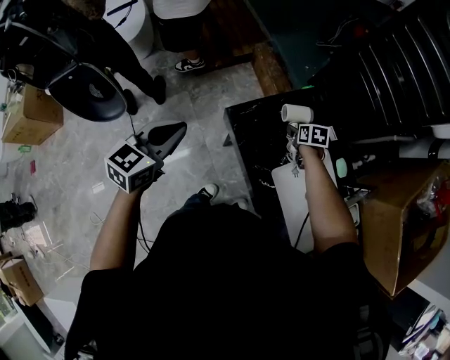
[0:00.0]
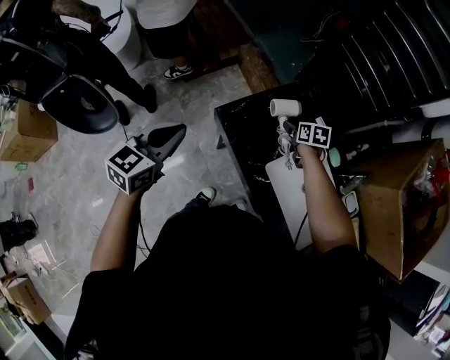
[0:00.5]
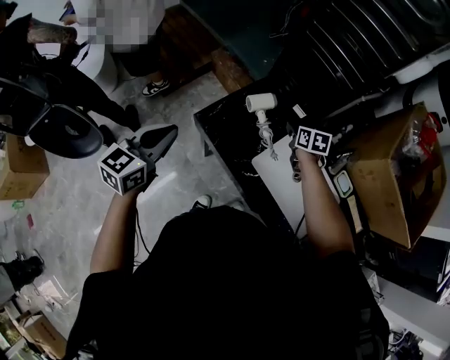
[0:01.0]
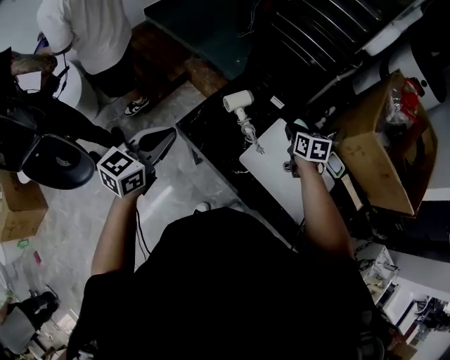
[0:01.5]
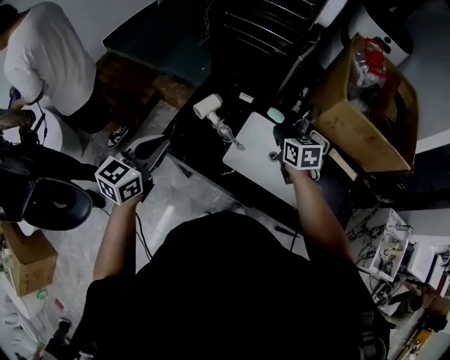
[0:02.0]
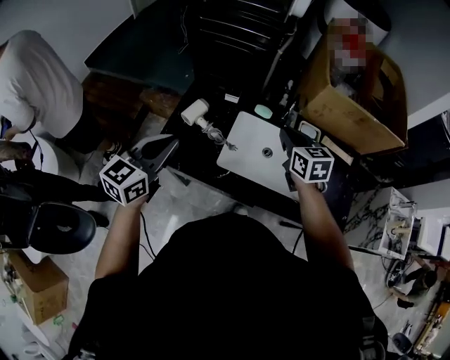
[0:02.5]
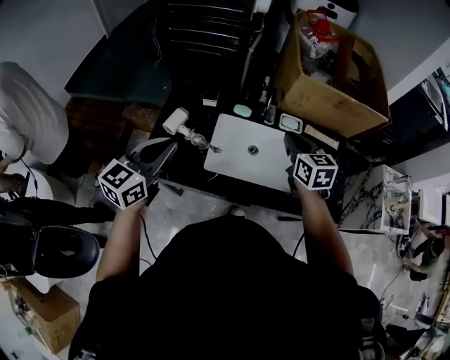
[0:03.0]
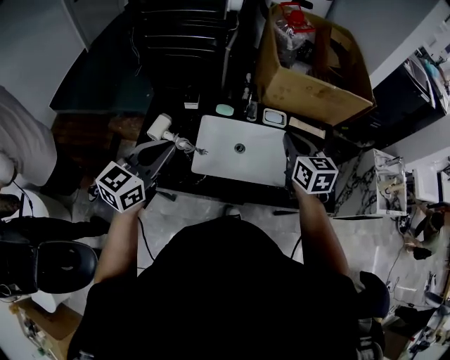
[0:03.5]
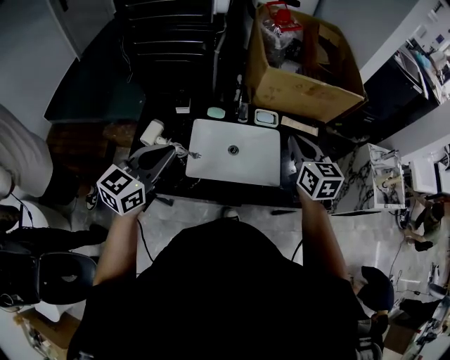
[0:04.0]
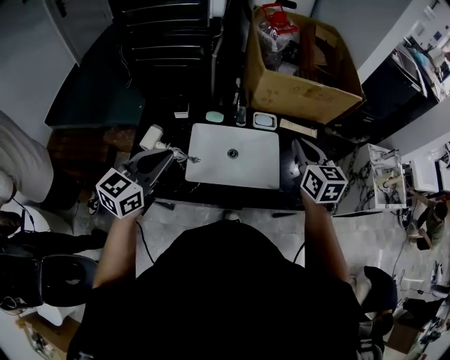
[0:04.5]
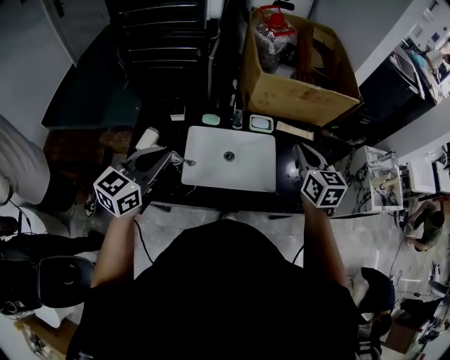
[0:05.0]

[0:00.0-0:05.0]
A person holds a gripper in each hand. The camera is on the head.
0:00.0 to 0:02.5: The right gripper shifts by roughly 40 cm, tilts its fingers about 30 degrees upward, and closes its fingers. Meanwhile the left gripper changes place by approximately 25 cm, and turns by some 40 degrees.
0:02.5 to 0:05.0: The left gripper moves to the right and forward, about 15 cm. The right gripper moves to the right, some 20 cm, and changes its angle by about 20 degrees.

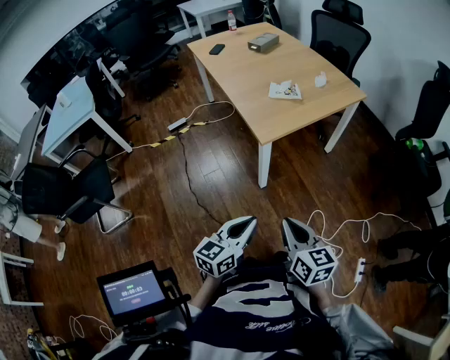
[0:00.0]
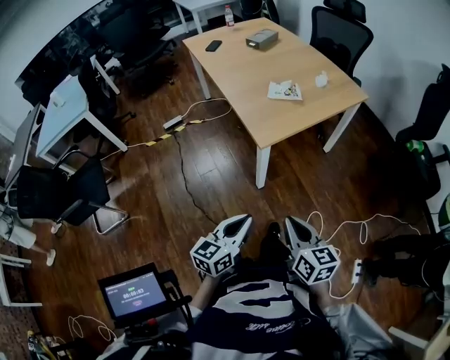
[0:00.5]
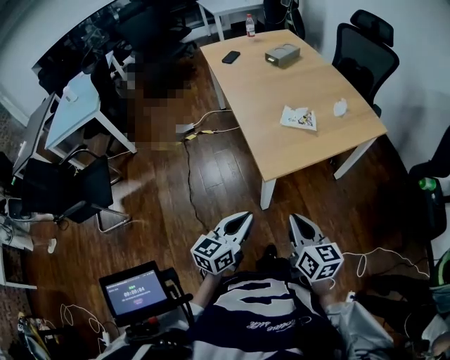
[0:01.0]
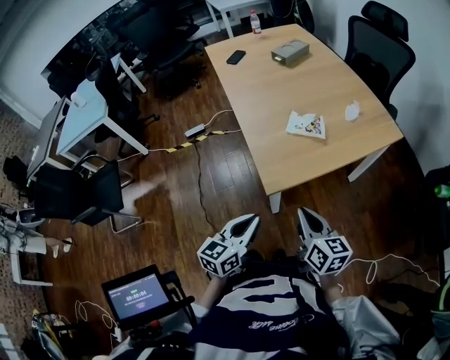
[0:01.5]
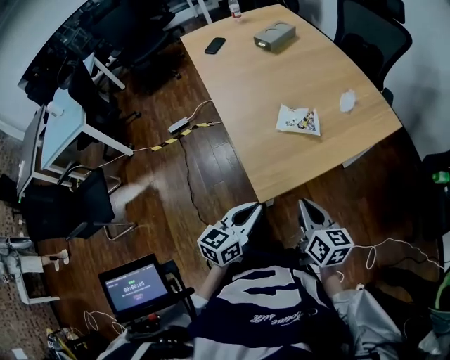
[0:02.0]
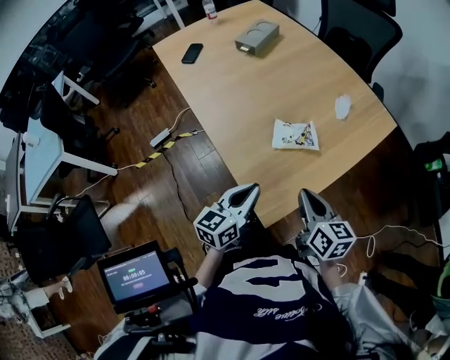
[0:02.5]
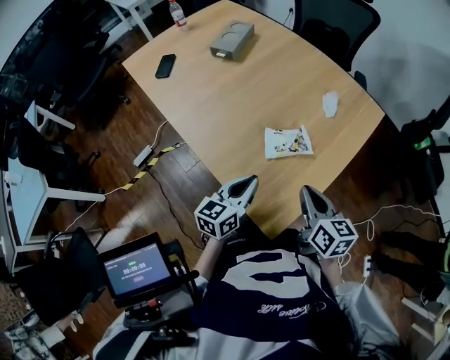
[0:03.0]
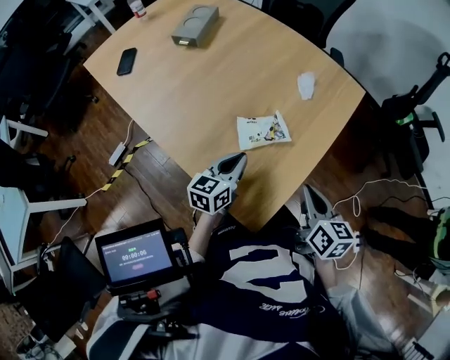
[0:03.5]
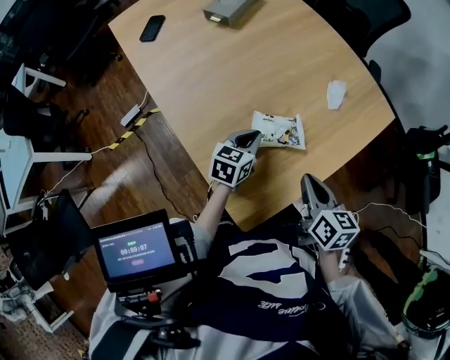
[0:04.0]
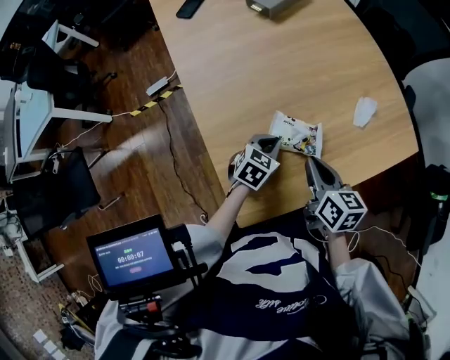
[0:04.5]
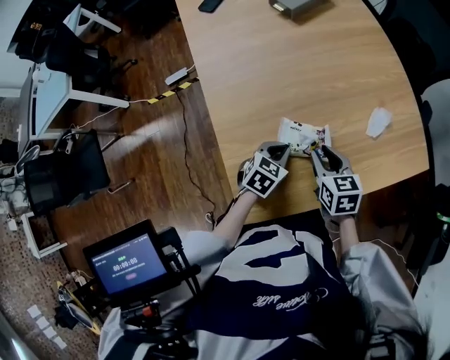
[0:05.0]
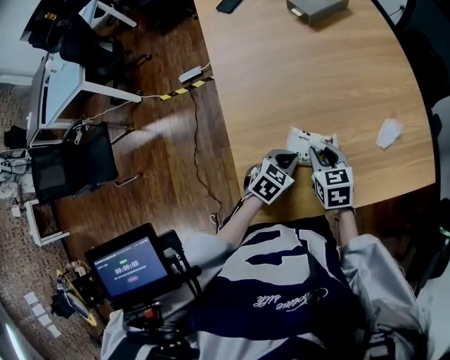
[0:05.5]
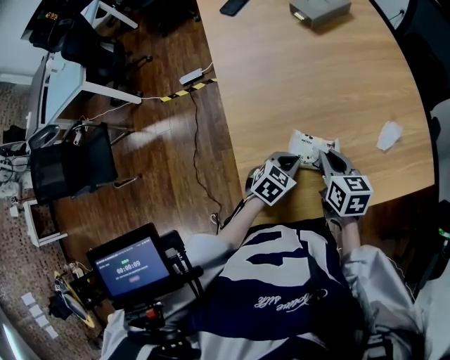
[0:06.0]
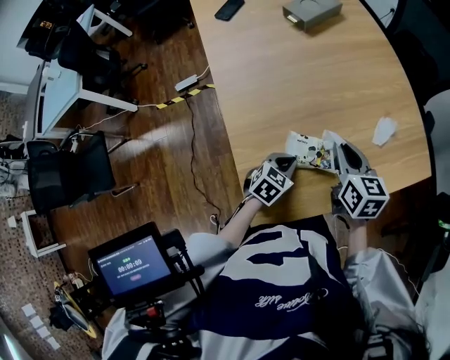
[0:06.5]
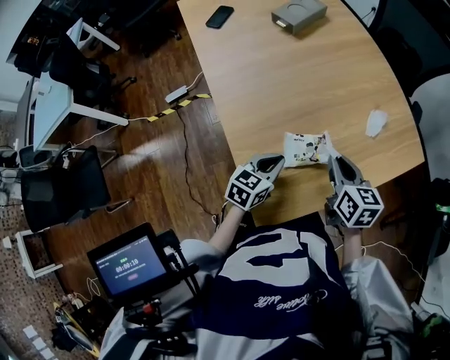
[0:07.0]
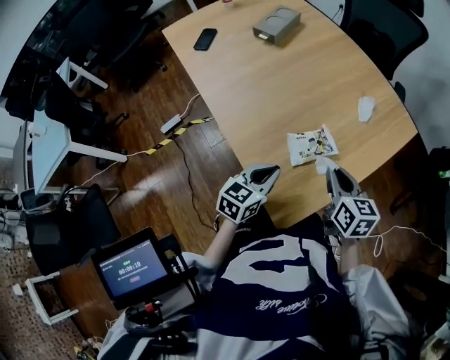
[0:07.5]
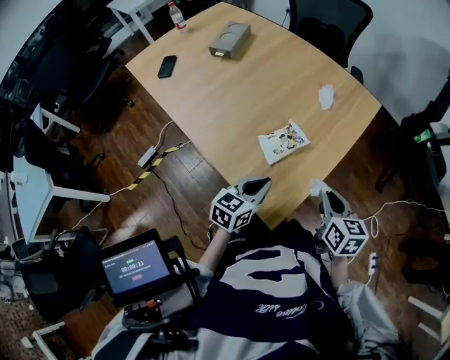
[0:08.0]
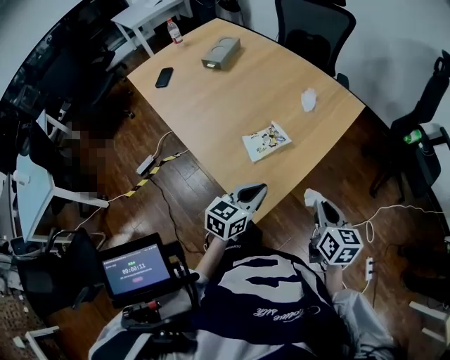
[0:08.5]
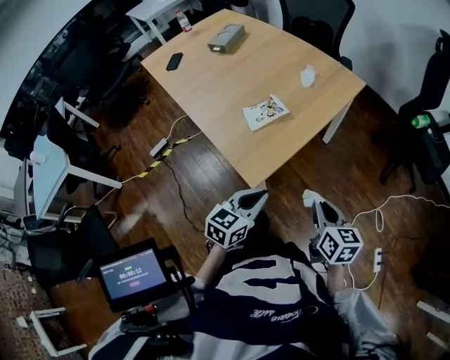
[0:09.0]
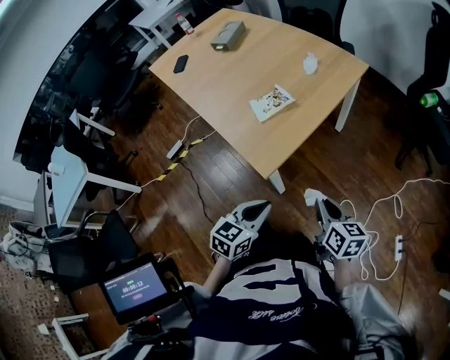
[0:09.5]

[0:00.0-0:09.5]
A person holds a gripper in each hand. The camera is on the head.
0:00.0 to 0:02.0: The grippers both shift forward by approximately 35 cm.
0:02.0 to 0:04.0: The right gripper moves some 20 cm, while the left gripper moves roughly 40 cm, and turns by some 20 degrees.
0:04.0 to 0:05.5: The left gripper shifts by some 5 cm. Meanwhile the right gripper heads forward, downward and to the left, covering roughly 15 cm, swivels about 50 degrees, and opens up.
0:05.5 to 0:07.5: The right gripper travels upward and backward by about 15 cm, rotates about 40 degrees, and closes its fingers. Meanwhile the left gripper is displaced upward, to the left and backward by approximately 15 cm, and rotates about 20 degrees.
0:07.5 to 0:09.5: The two grippers go about 35 cm backward and to the right.

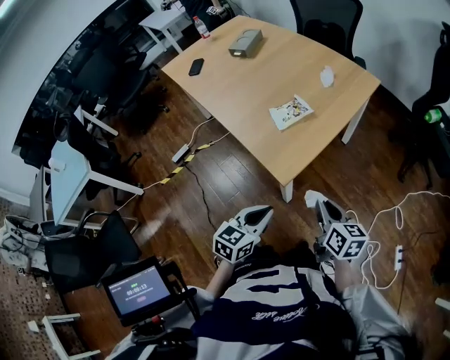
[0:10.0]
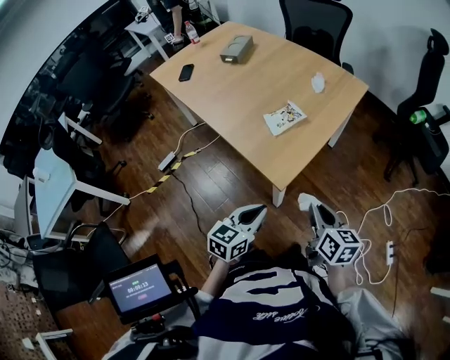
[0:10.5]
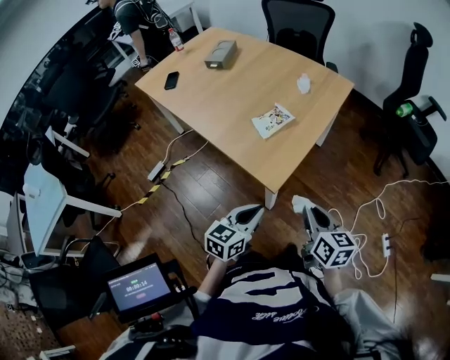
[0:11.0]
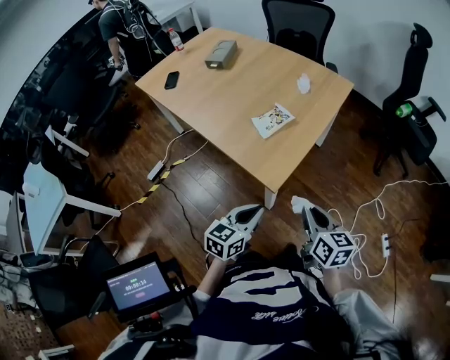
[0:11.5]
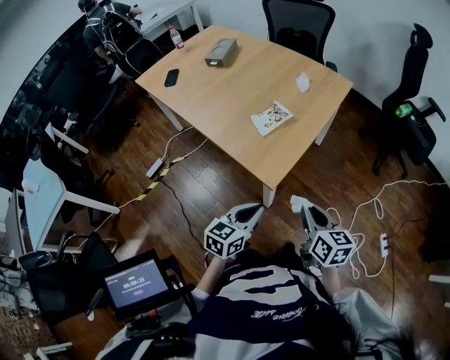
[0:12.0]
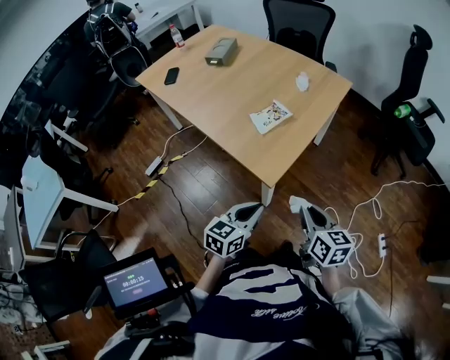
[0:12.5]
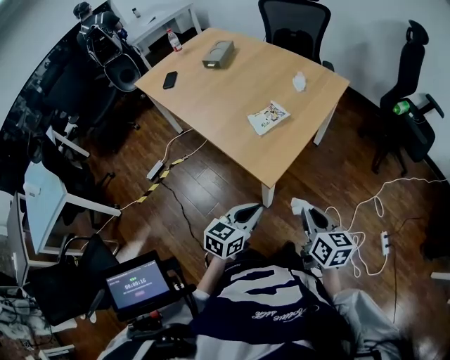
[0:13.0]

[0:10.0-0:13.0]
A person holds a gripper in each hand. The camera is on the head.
0:10.0 to 0:11.5: The right gripper moves about 5 cm.
0:11.5 to 0:13.0: Both grippers stay put.

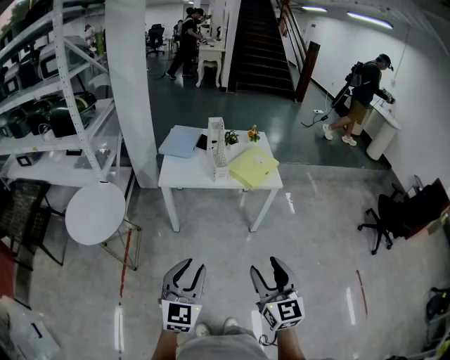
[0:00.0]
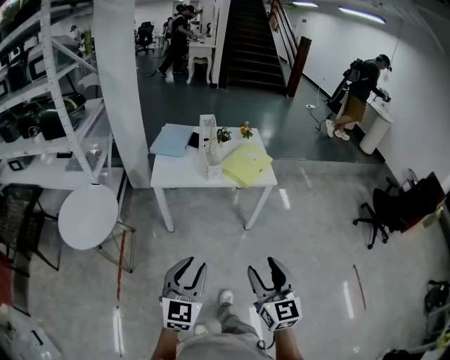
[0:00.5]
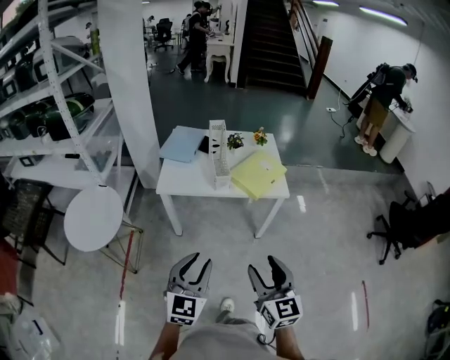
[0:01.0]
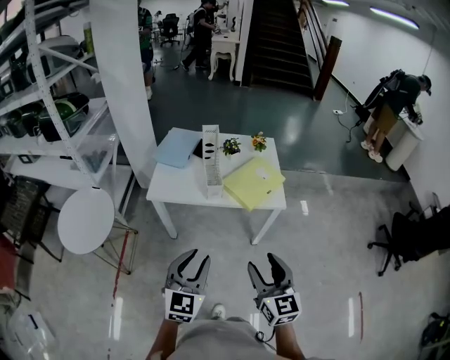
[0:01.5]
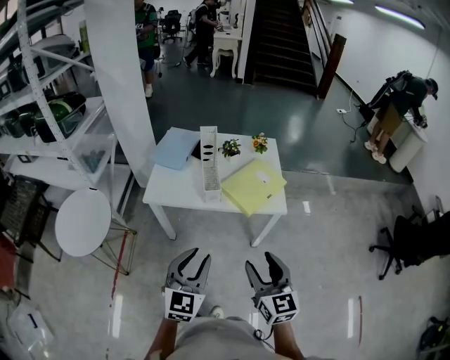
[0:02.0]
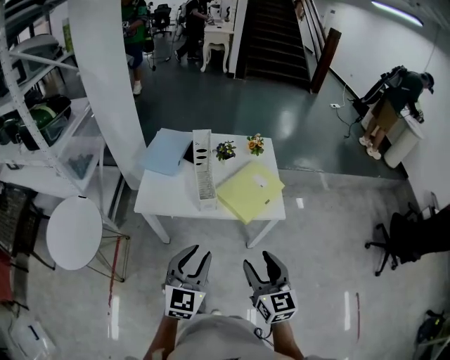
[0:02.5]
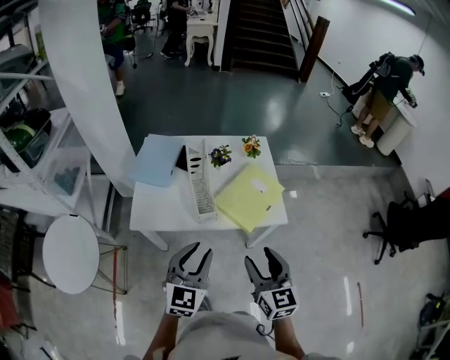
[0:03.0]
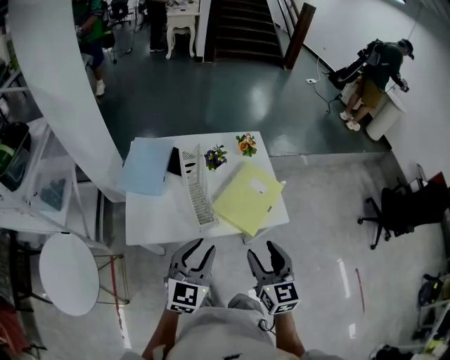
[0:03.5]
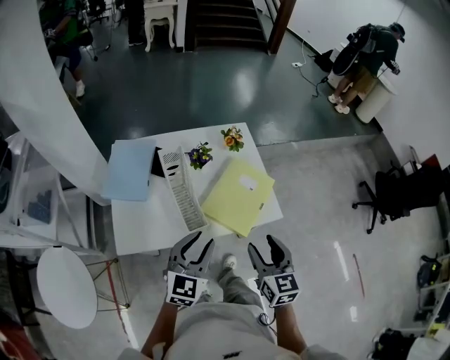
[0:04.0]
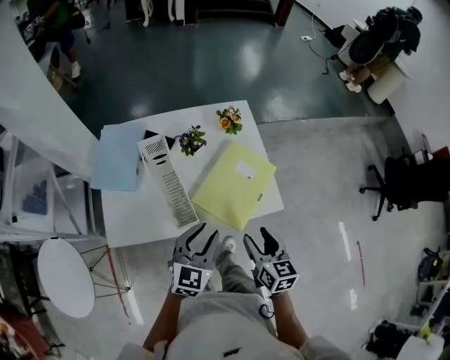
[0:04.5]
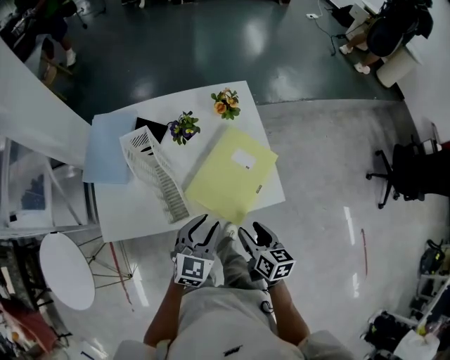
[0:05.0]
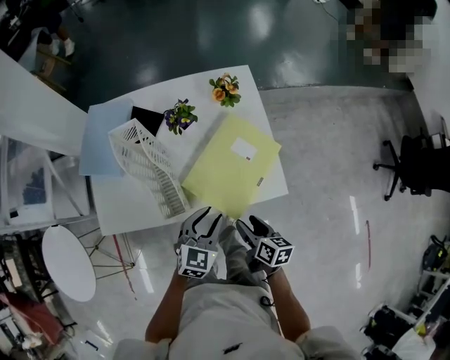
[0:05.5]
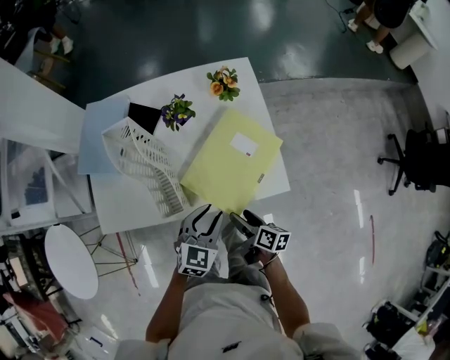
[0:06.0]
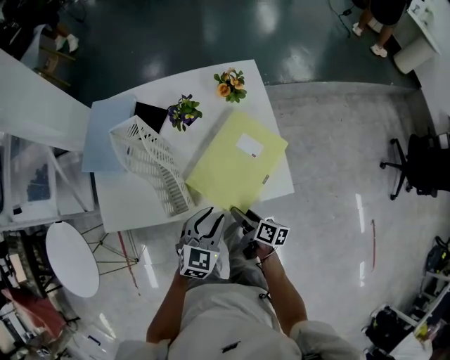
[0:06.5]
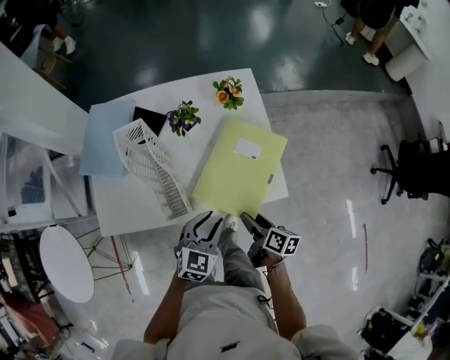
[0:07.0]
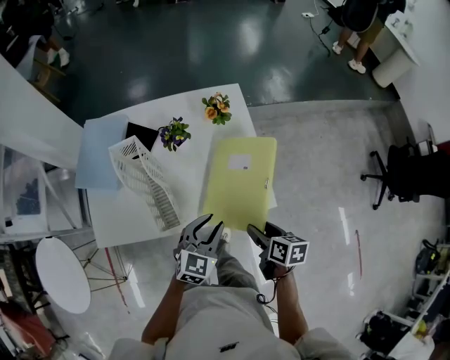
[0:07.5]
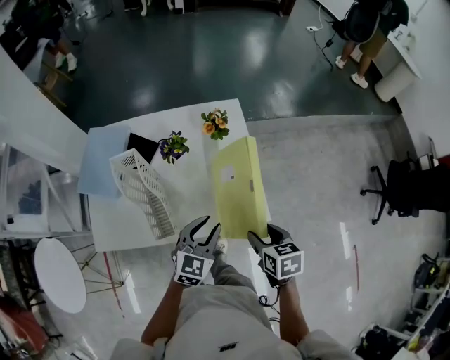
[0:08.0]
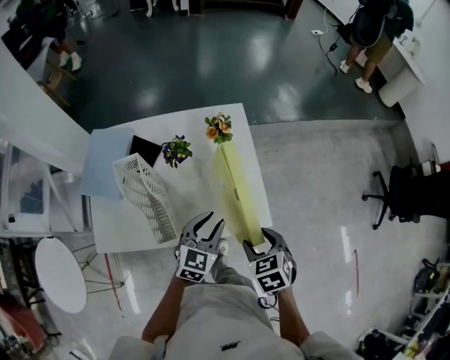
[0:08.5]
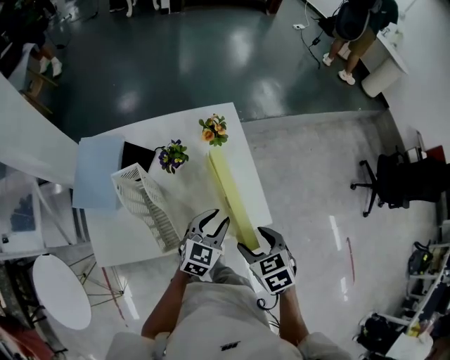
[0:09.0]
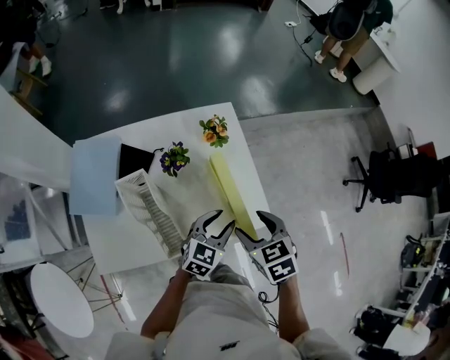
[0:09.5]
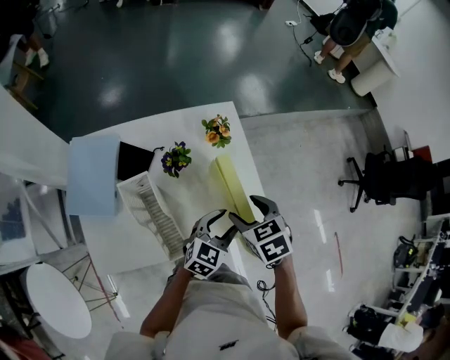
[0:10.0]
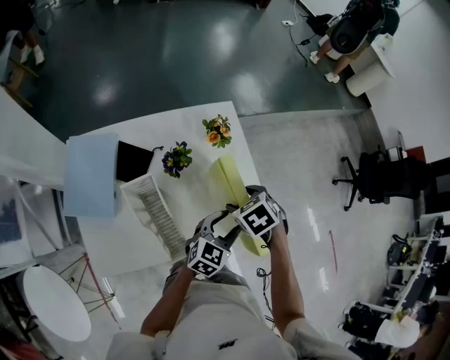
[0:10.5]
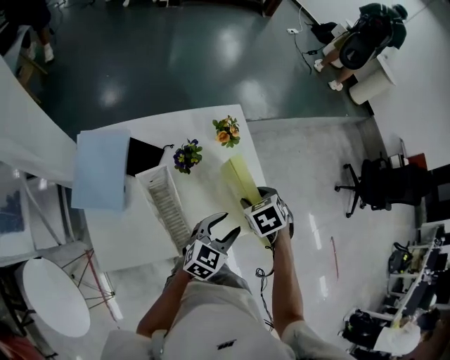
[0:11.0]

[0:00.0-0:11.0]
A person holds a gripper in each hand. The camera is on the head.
0:00.0 to 0:02.0: The right gripper goes about 30 cm forward. Meanwhile the left gripper heads forward and to the right, covering roughly 30 cm.
0:02.0 to 0:03.5: The grippers both shift forward by approximately 25 cm.
0:03.5 to 0:05.5: The right gripper is displaced downward and forward by approximately 30 cm, and rotates around the line of its fingers by about 40 degrees, clockwise from behind. The left gripper is displaced downward, forward and to the right by roughly 30 cm.
0:05.5 to 0:07.5: The right gripper heads upward and to the right, covering about 10 cm.
0:07.5 to 0:09.0: The left gripper goes some 10 cm forward, while the right gripper heads upward and to the left, covering about 10 cm, and rolls counterclockwise, seen from behind, by some 40 degrees.
0:09.0 to 0:11.0: The right gripper shifts some 15 cm forward and to the left.
